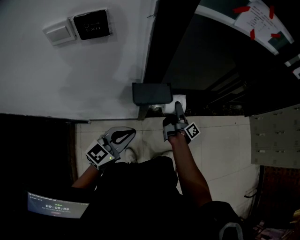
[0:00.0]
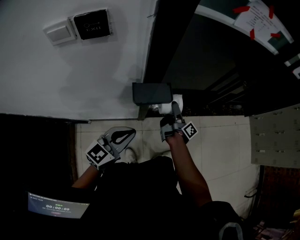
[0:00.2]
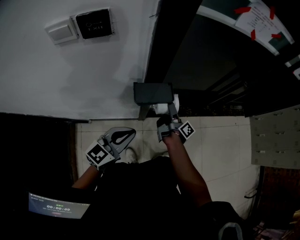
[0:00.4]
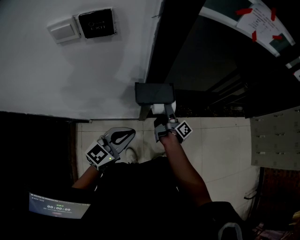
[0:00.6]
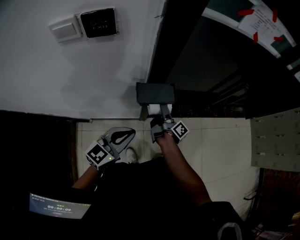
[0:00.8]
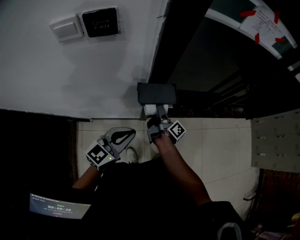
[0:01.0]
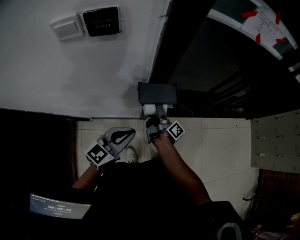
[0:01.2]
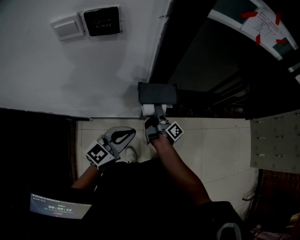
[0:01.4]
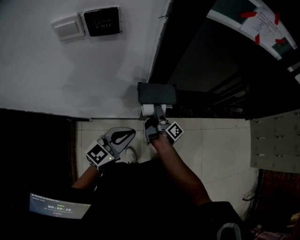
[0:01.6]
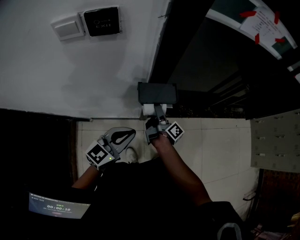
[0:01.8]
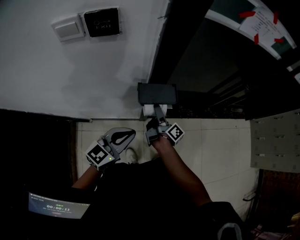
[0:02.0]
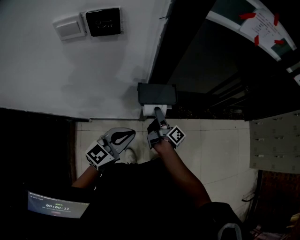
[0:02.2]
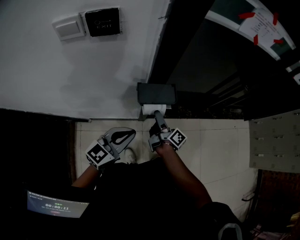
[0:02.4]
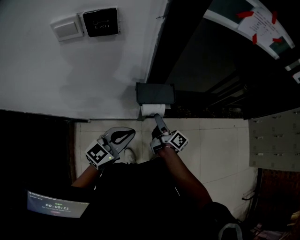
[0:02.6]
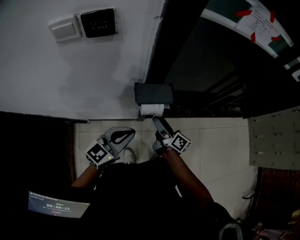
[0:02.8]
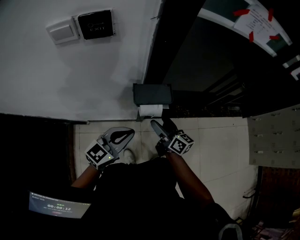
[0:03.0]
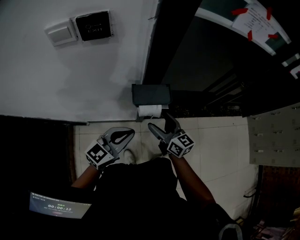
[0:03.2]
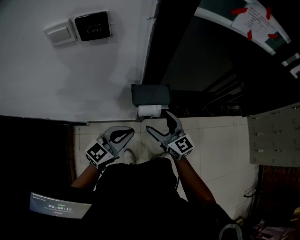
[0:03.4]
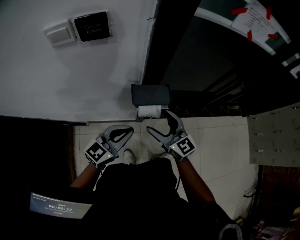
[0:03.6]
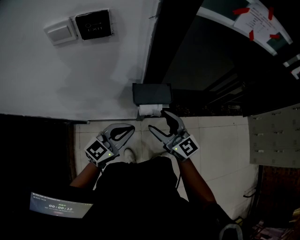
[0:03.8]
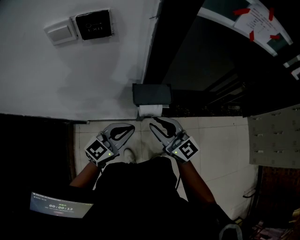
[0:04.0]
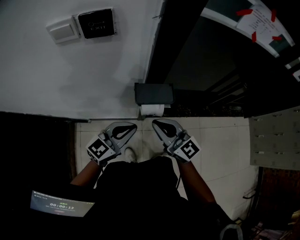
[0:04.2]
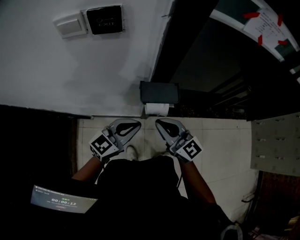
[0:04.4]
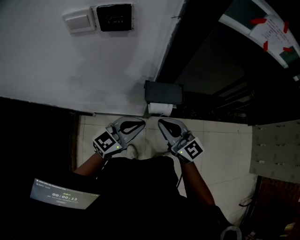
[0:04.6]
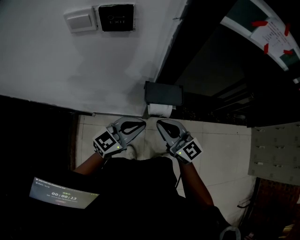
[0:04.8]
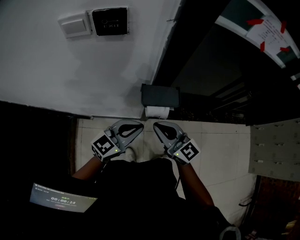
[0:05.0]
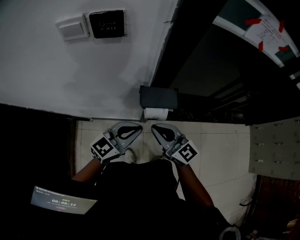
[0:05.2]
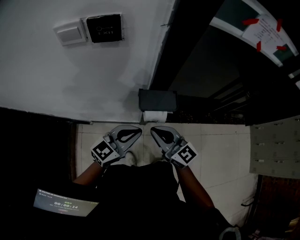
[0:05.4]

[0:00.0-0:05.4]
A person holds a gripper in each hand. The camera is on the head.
0:00.0 to 0:01.4: The right gripper heads to the left, covering approximately 10 cm.
0:01.4 to 0:02.8: The right gripper changes place by about 5 cm, and changes its angle by some 30 degrees.
0:02.8 to 0:04.0: The right gripper travels upward and backward by about 15 cm, rolls counterclockwise, seen from behind, by approximately 60 degrees, and closes its fingers.
0:04.0 to 0:05.4: The grippers move only a little.

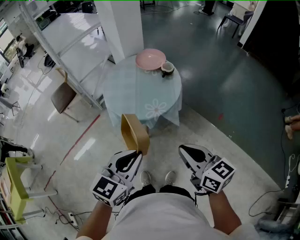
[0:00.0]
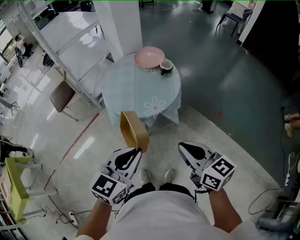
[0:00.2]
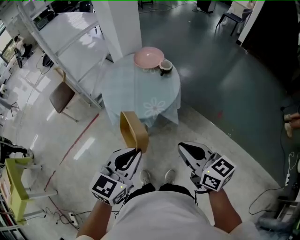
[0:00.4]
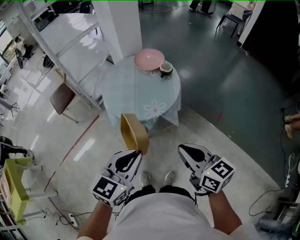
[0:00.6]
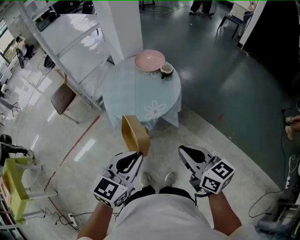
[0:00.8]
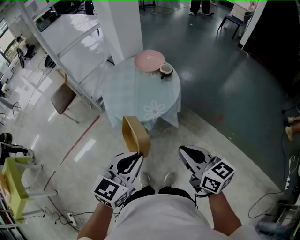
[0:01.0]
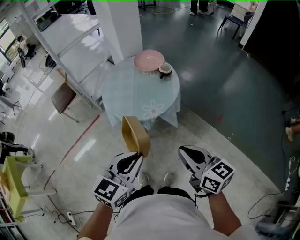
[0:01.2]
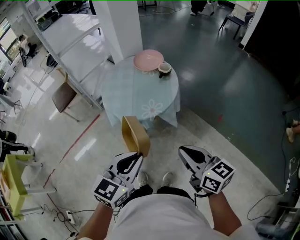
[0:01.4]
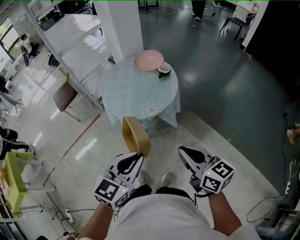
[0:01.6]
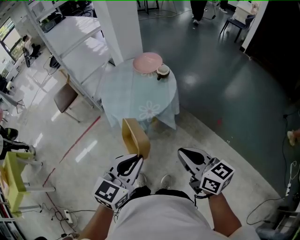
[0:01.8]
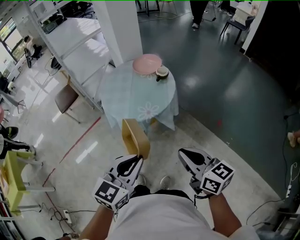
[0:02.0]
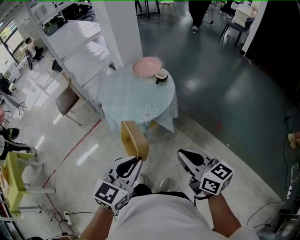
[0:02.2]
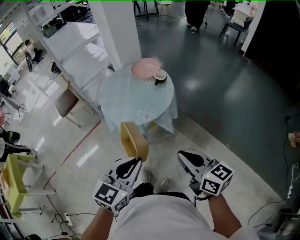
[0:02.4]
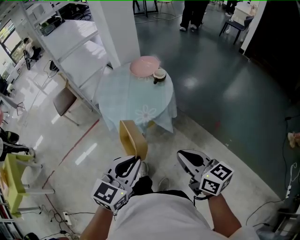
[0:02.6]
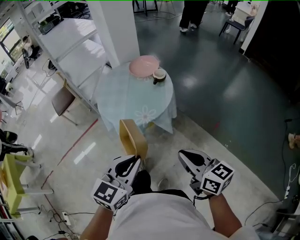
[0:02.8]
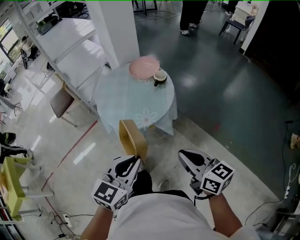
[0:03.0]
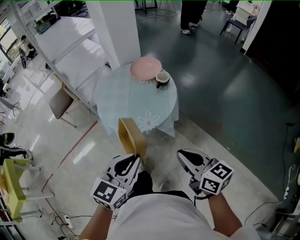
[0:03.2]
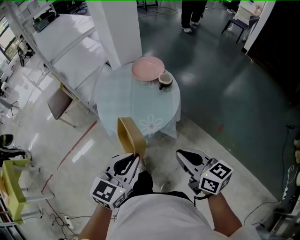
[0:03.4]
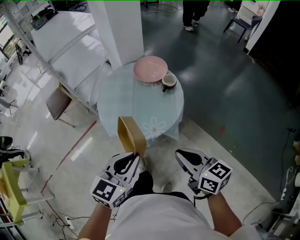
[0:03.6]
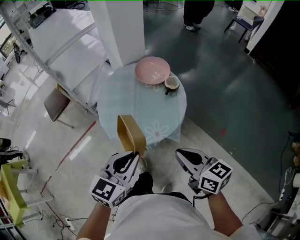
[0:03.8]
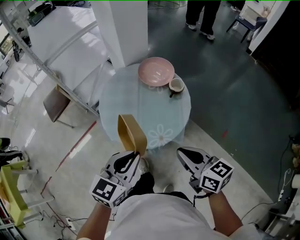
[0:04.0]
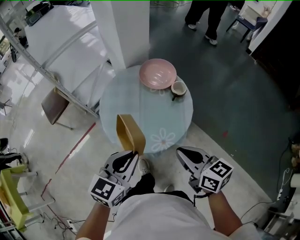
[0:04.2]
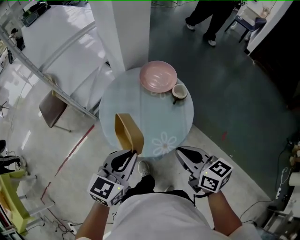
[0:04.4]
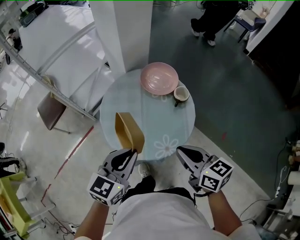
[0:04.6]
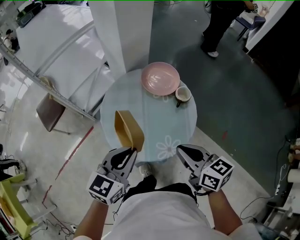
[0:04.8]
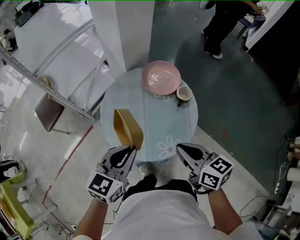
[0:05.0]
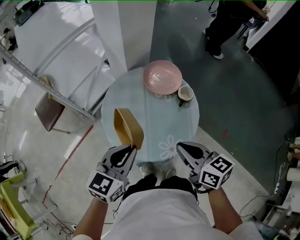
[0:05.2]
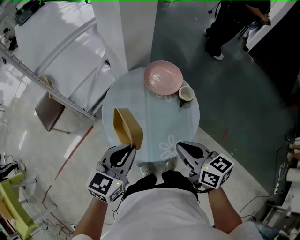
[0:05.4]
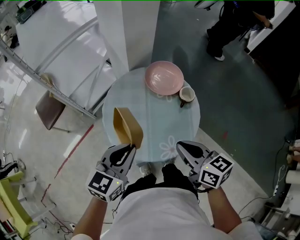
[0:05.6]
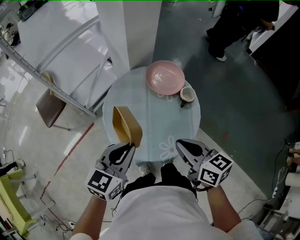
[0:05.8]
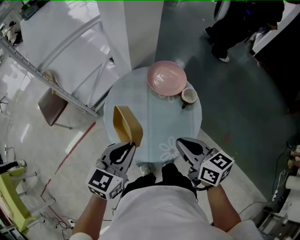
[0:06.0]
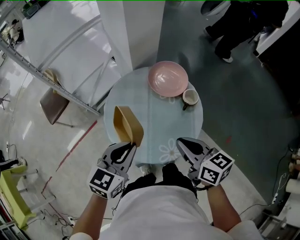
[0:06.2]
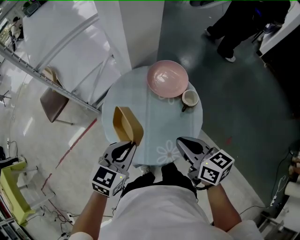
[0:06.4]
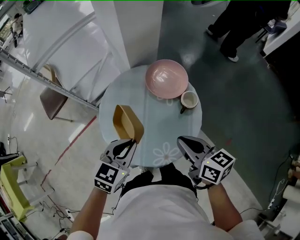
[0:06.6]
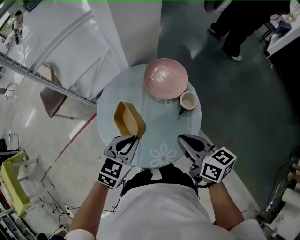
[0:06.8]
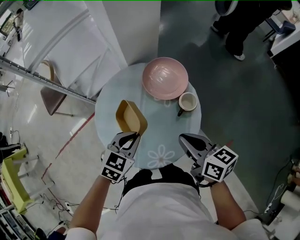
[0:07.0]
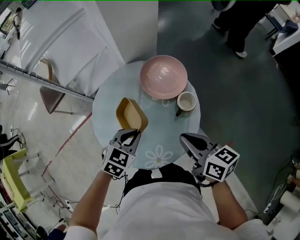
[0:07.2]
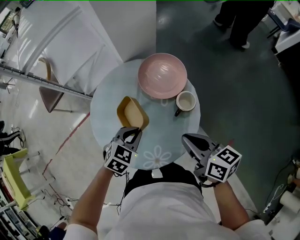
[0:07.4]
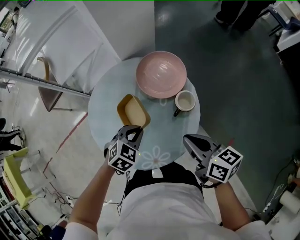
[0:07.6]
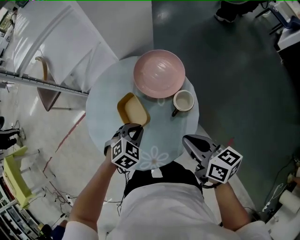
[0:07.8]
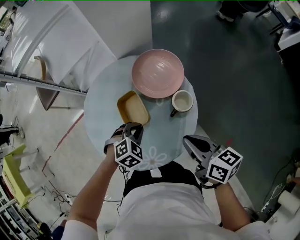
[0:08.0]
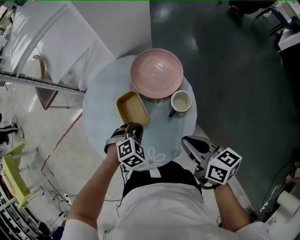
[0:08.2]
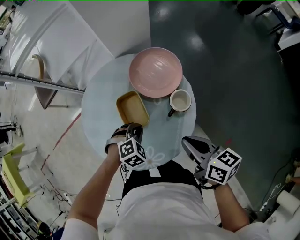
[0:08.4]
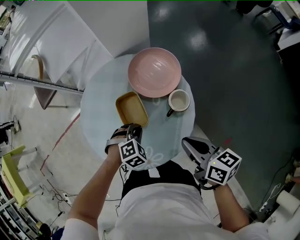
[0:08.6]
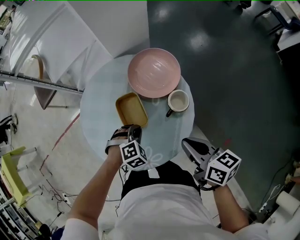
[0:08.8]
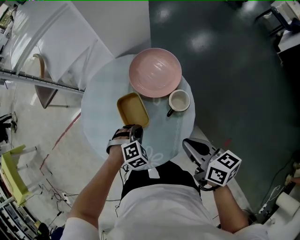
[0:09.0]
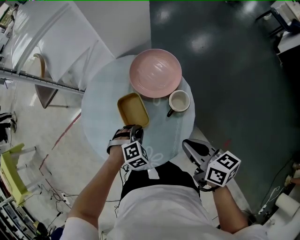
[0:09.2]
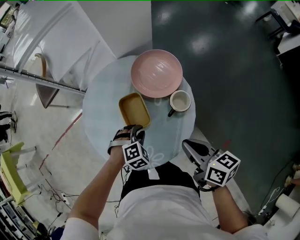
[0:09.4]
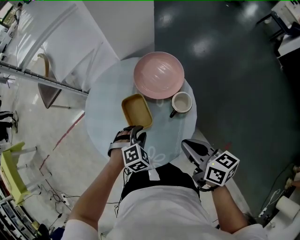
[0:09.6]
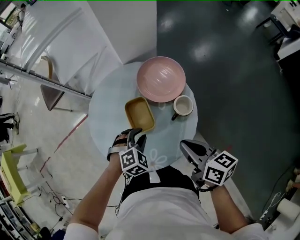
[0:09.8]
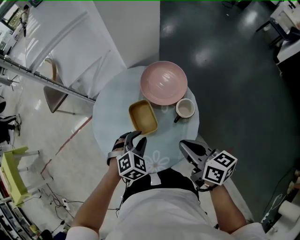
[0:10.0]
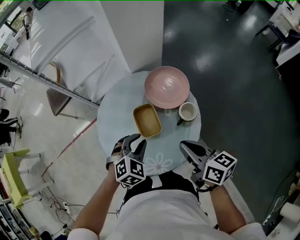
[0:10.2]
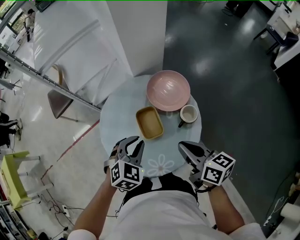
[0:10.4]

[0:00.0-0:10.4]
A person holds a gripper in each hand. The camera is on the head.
0:00.0 to 0:01.4: The grippers make only small movements.
0:01.4 to 0:03.0: The right gripper moves some 5 cm, while the left gripper shifts by roughly 5 cm.
0:03.0 to 0:04.4: The two grippers go about 30 cm forward and to the left.
0:04.4 to 0:06.0: The grippers both shift forward by roughly 10 cm.
0:06.0 to 0:07.4: The right gripper goes approximately 20 cm to the right, forward and downward; the left gripper moves downward, to the right and forward, approximately 25 cm, and changes its angle by roughly 30 degrees.
0:07.4 to 0:09.0: The right gripper changes place by roughly 5 cm; the left gripper goes about 10 cm downward, and changes its angle by about 40 degrees.
0:09.0 to 0:10.4: The left gripper goes approximately 20 cm upward, and turns by approximately 30 degrees, while the right gripper is displaced to the left and upward by about 10 cm.

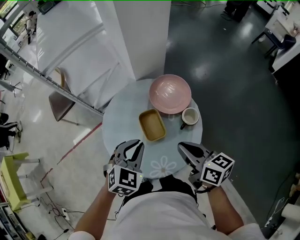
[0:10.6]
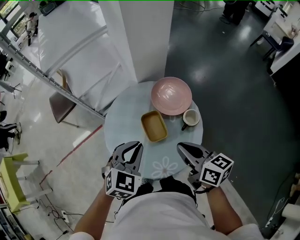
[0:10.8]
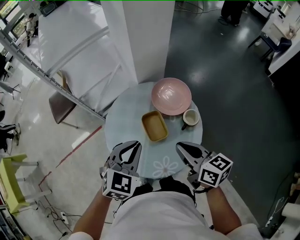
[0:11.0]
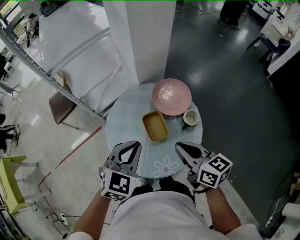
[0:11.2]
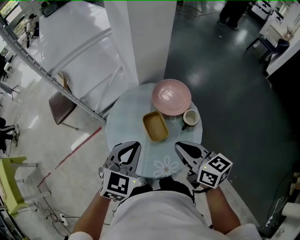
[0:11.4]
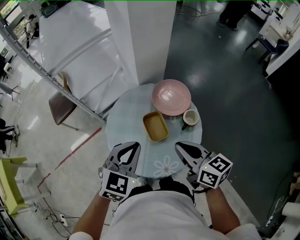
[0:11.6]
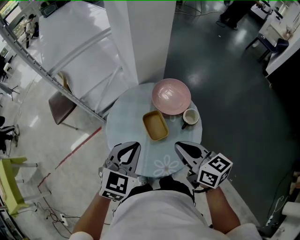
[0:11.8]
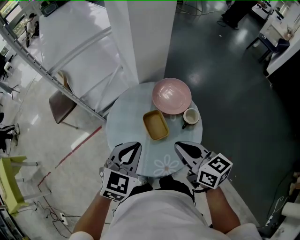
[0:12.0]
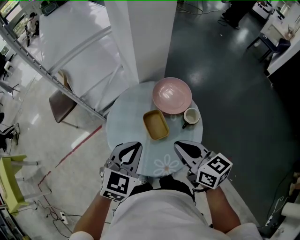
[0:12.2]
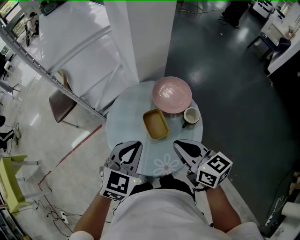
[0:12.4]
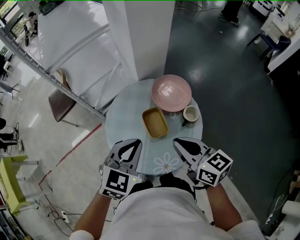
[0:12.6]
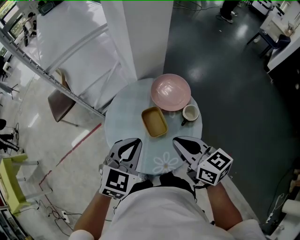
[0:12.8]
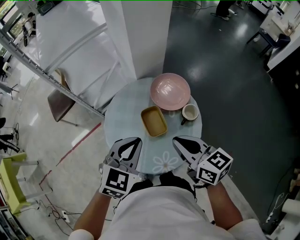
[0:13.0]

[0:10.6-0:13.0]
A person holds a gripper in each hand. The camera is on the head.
0:10.6 to 0:11.8: The left gripper goes roughly 5 cm upward. The right gripper changes place by about 5 cm.
0:11.8 to 0:13.0: The grippers stay close to where they were, moving slightly.

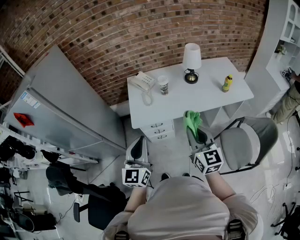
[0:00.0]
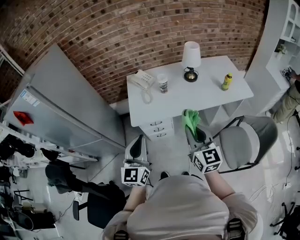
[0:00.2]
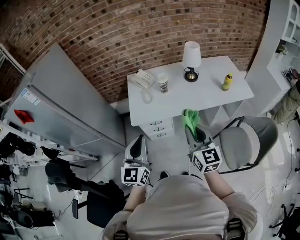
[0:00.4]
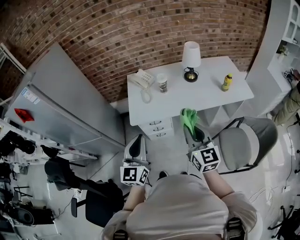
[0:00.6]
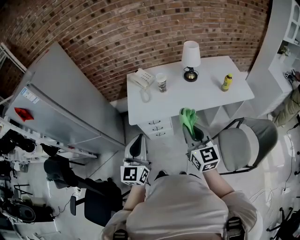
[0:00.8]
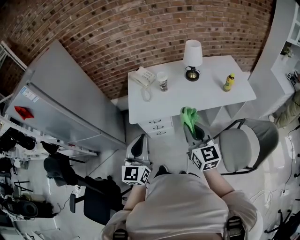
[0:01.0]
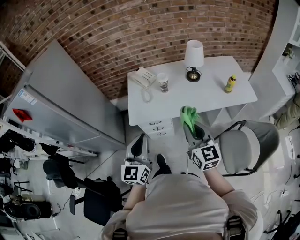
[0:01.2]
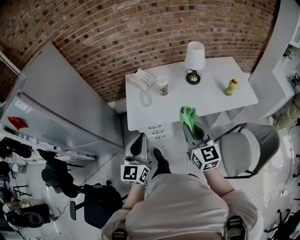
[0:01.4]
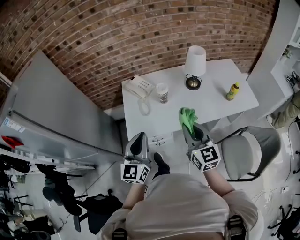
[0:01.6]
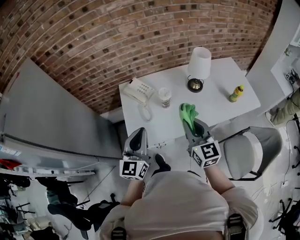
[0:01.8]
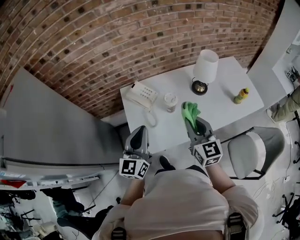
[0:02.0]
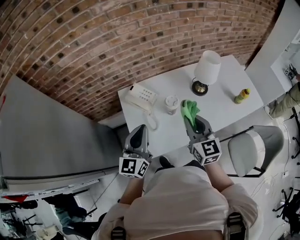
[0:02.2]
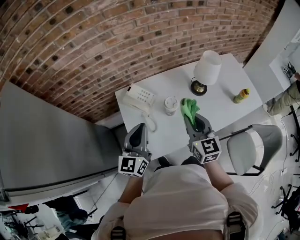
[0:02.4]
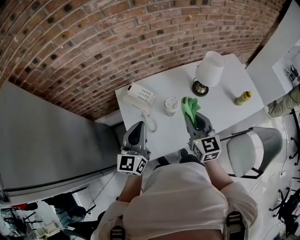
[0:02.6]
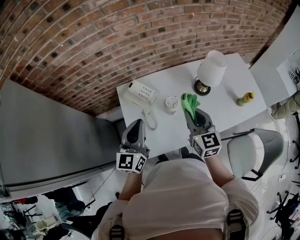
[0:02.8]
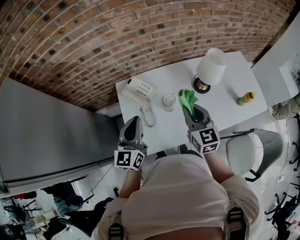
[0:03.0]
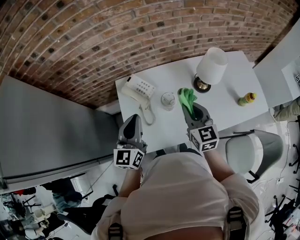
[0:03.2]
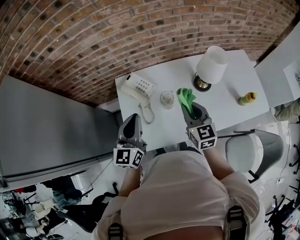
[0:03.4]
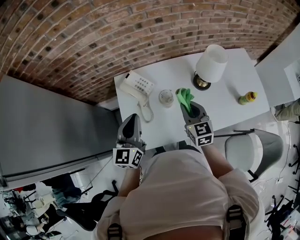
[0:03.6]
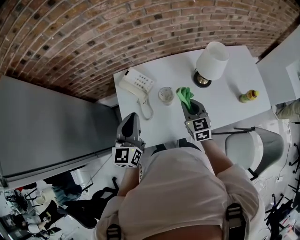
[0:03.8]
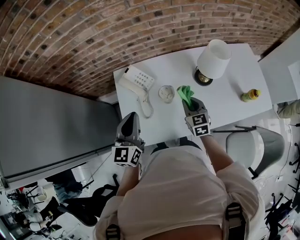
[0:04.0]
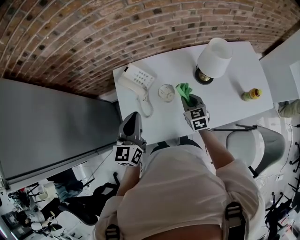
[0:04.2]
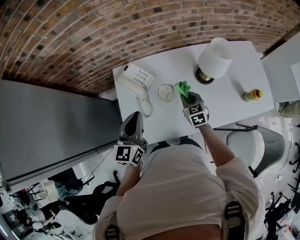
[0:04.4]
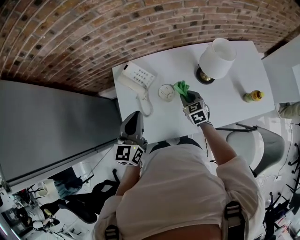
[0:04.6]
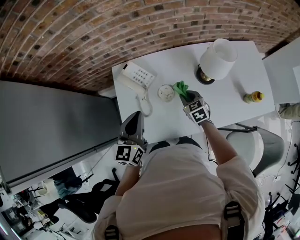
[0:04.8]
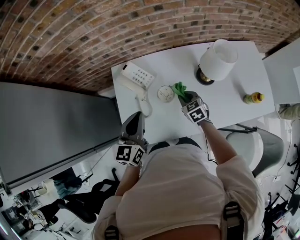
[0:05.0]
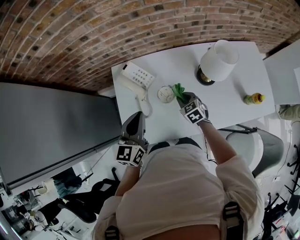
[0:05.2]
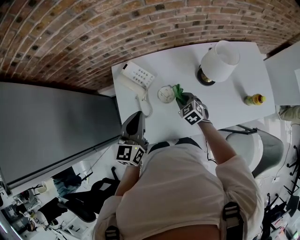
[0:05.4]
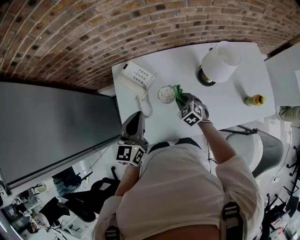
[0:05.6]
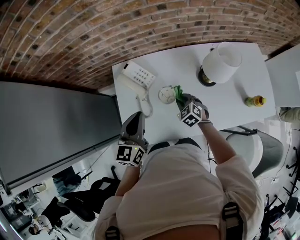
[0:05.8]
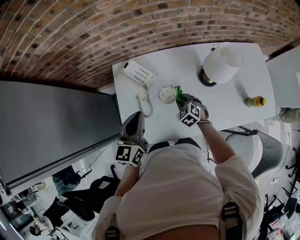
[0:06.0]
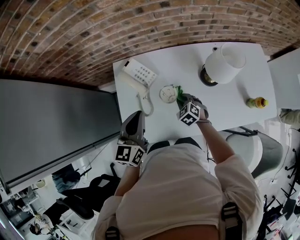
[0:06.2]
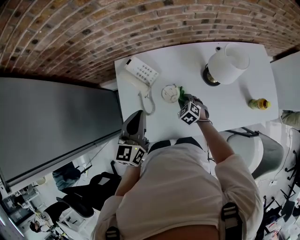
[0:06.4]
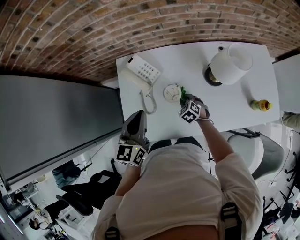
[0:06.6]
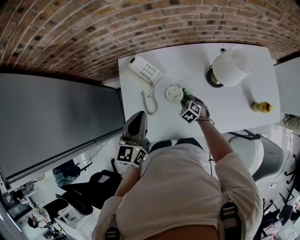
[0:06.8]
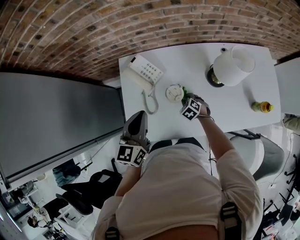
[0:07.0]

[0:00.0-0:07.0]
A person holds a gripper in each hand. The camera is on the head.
0:00.0 to 0:01.4: Both grippers travel together forward, roughly 10 cm.
0:01.4 to 0:02.8: Both grippers travel together forward, roughly 35 cm.
0:02.8 to 0:04.2: The right gripper travels downward by approximately 20 cm, and rotates about 20 degrees. Meanwhile the left gripper moves roughly 5 cm.
0:04.2 to 0:05.6: The right gripper travels downward by about 5 cm, and changes its angle by approximately 30 degrees.
0:05.6 to 0:07.0: The right gripper is displaced downward by approximately 10 cm.
